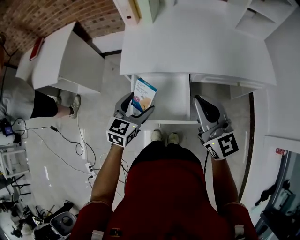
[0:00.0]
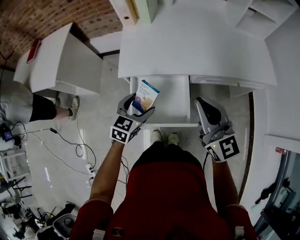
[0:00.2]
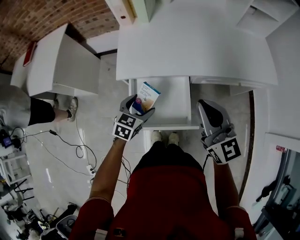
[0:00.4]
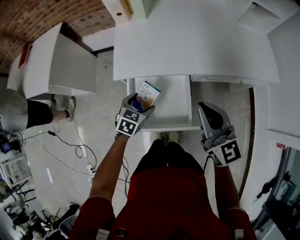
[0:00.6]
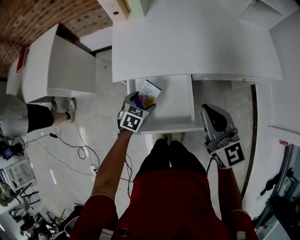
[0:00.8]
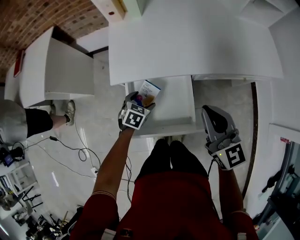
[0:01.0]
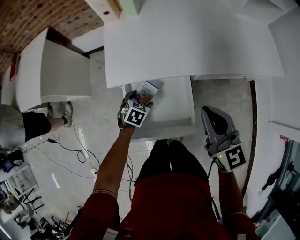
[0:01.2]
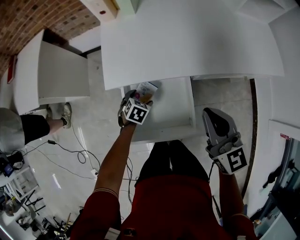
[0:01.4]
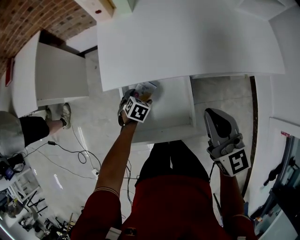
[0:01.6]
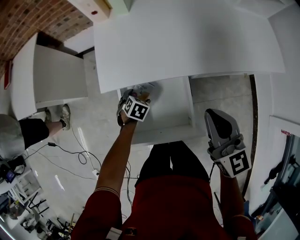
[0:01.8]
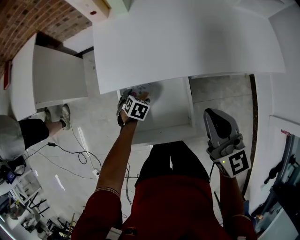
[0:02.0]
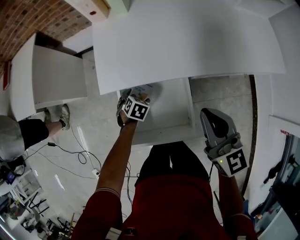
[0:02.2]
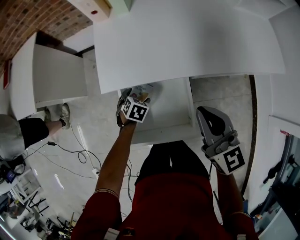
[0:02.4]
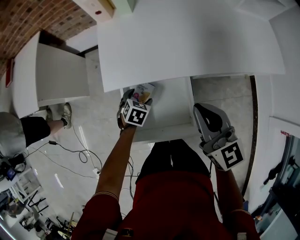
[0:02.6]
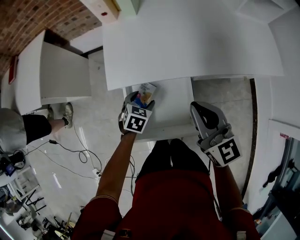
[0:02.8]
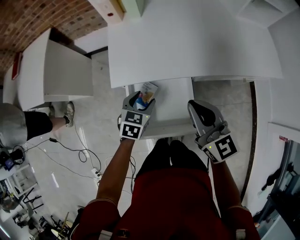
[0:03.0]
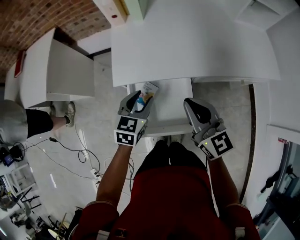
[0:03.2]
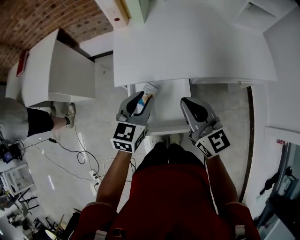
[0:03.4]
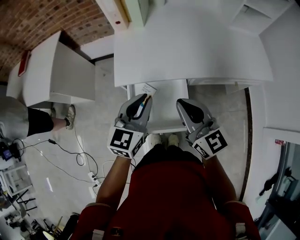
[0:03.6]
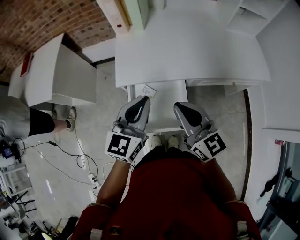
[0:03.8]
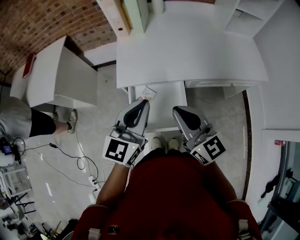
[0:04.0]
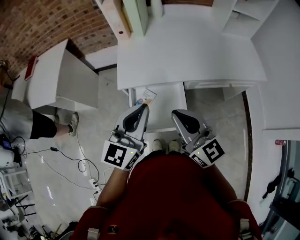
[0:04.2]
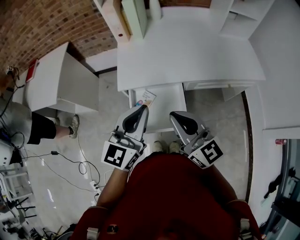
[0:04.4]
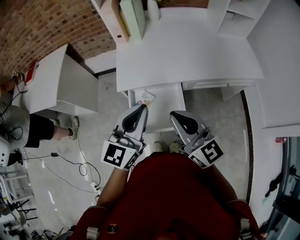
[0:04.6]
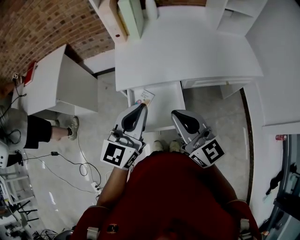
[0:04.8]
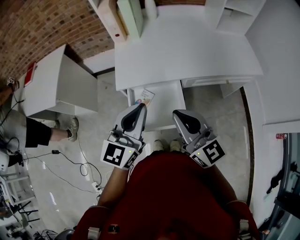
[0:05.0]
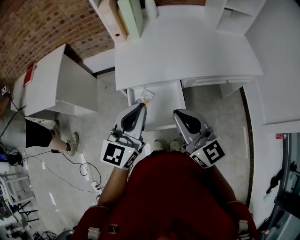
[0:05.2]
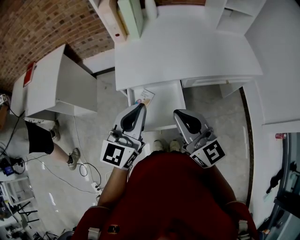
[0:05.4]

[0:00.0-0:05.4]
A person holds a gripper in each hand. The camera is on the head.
0:00.0 to 0:01.4: The right gripper goes about 10 cm downward and forward, while the left gripper moves downward and forward, approximately 30 cm, and angles its fingers downward, by about 40 degrees.
0:01.4 to 0:02.8: The left gripper goes about 5 cm upward.
0:02.8 to 0:04.0: The left gripper heads upward, covering about 35 cm, tilts its fingers some 50 degrees upward, and closes up. Meanwhile the right gripper shifts about 10 cm backward and upward.
0:04.0 to 0:05.4: The grippers make only small movements.

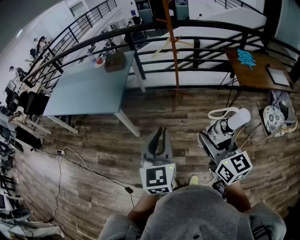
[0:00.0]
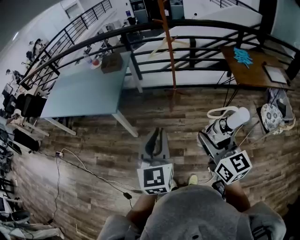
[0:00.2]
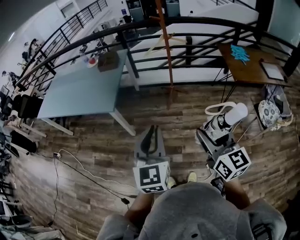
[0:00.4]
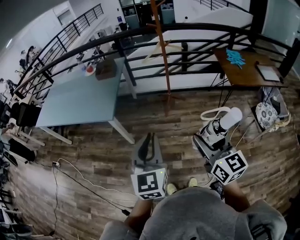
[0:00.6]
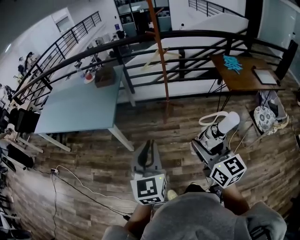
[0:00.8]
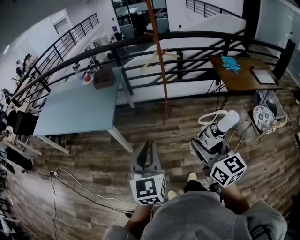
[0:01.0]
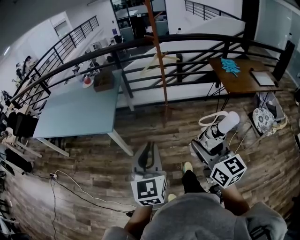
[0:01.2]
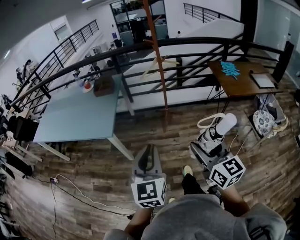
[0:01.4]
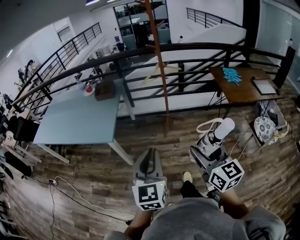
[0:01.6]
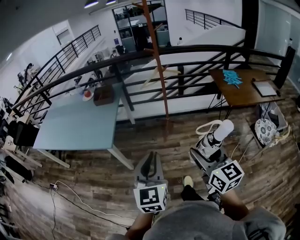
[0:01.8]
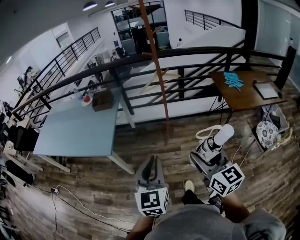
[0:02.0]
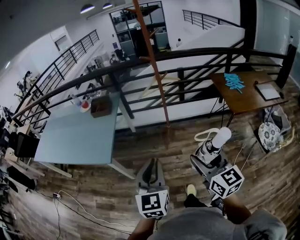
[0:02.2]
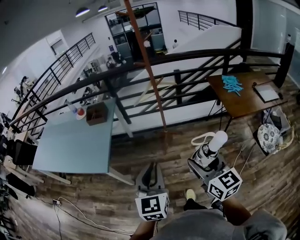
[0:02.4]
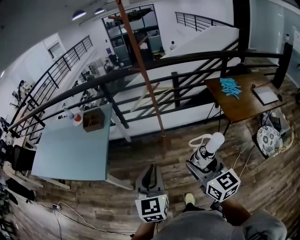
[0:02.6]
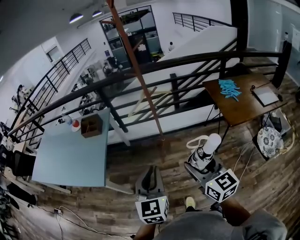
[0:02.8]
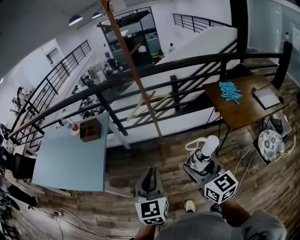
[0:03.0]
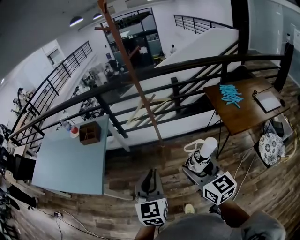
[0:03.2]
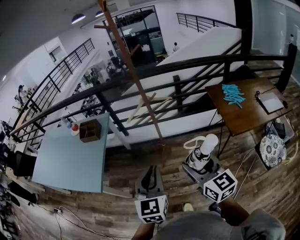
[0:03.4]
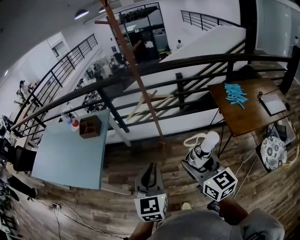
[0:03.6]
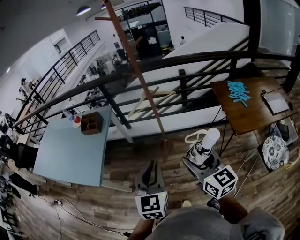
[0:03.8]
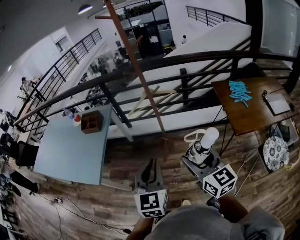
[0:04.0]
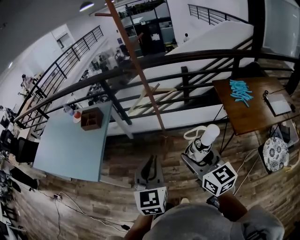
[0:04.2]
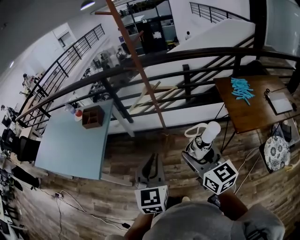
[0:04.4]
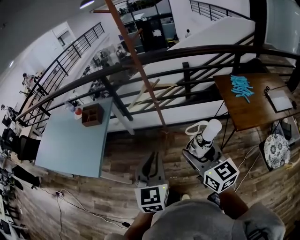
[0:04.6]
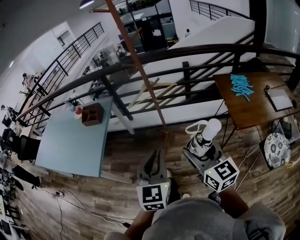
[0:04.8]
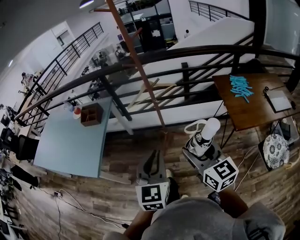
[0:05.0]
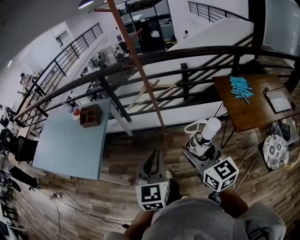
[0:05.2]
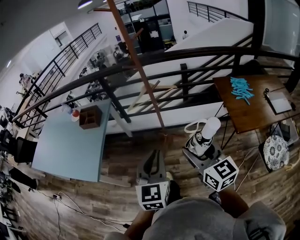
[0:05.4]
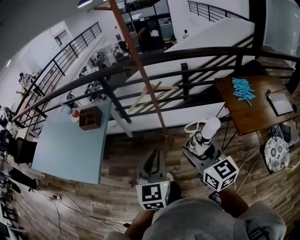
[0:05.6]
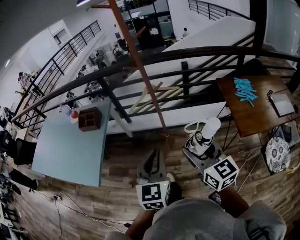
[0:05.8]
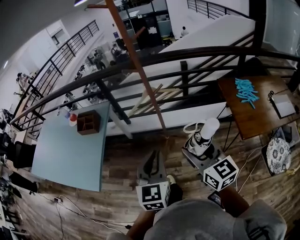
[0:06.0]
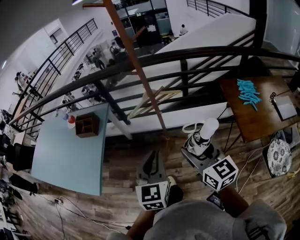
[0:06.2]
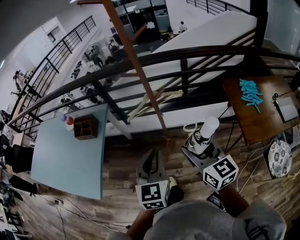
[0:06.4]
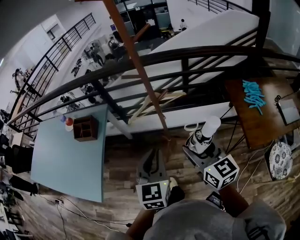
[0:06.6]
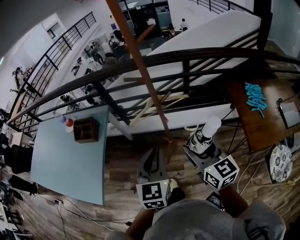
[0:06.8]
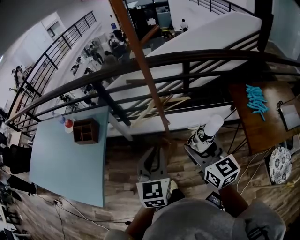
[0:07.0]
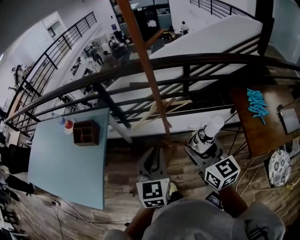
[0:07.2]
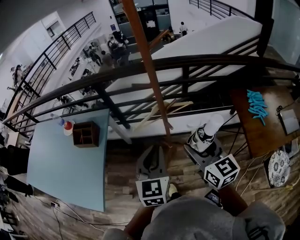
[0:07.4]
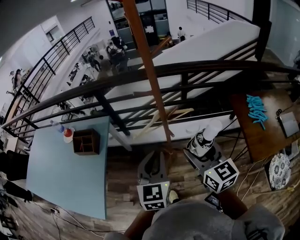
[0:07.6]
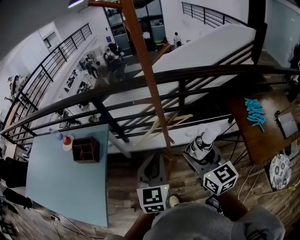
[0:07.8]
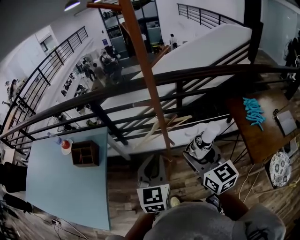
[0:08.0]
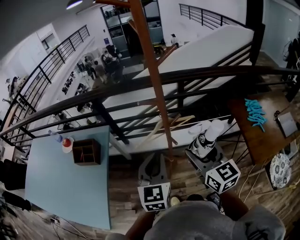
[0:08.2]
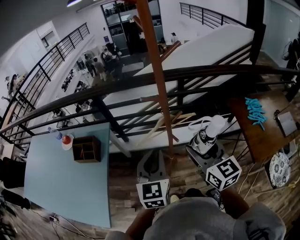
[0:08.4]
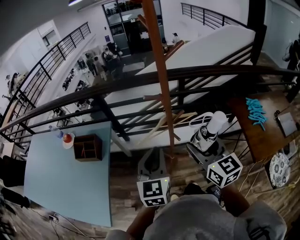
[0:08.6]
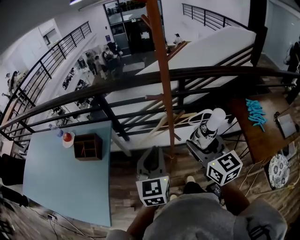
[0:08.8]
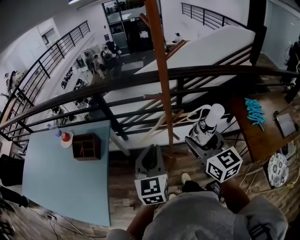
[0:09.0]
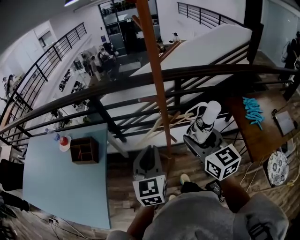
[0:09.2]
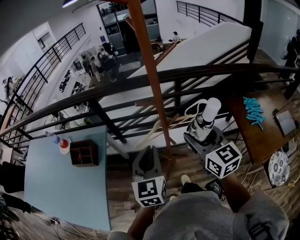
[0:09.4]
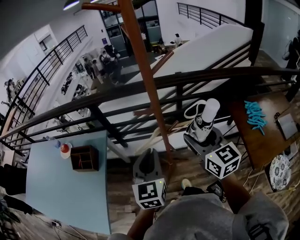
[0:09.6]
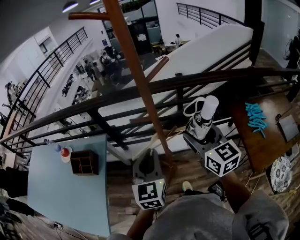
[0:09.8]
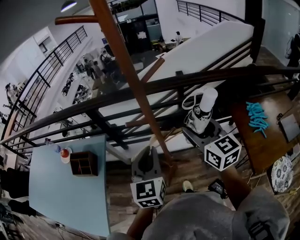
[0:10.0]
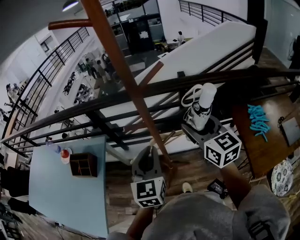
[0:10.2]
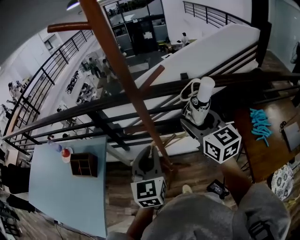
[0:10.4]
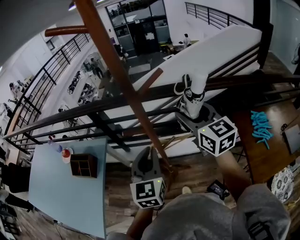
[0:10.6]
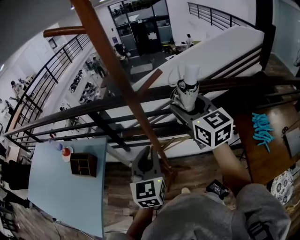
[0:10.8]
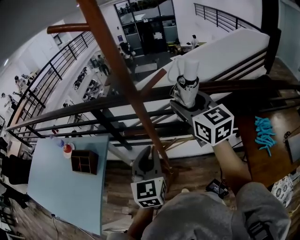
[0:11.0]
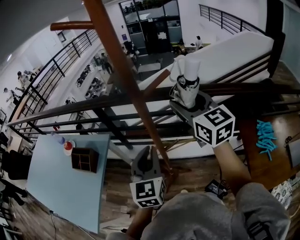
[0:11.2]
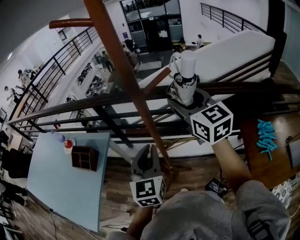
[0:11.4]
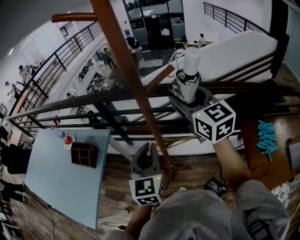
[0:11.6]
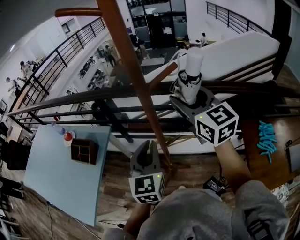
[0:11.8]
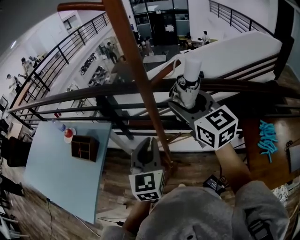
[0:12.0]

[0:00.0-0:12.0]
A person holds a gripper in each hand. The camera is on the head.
0:00.0 to 0:01.6: The right gripper moves forward, roughly 5 cm. The left gripper heads to the left, covering roughly 5 cm.
0:01.6 to 0:03.0: Both grippers travel together forward and to the right, some 30 cm.
0:03.0 to 0:04.4: The right gripper shifts approximately 10 cm forward and to the right. The left gripper is displaced to the right by about 5 cm.
0:04.4 to 0:06.0: Both grippers travel together forward, approximately 10 cm.
0:06.0 to 0:07.6: The grippers both shift forward by some 20 cm.
0:07.6 to 0:09.0: The right gripper shifts by roughly 5 cm; the left gripper heads to the left, covering some 5 cm.
0:09.0 to 0:10.4: Both grippers move forward and to the right, approximately 20 cm.
0:10.4 to 0:12.0: The right gripper moves forward, about 5 cm.

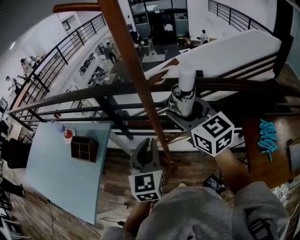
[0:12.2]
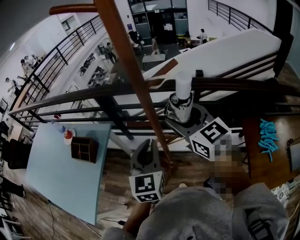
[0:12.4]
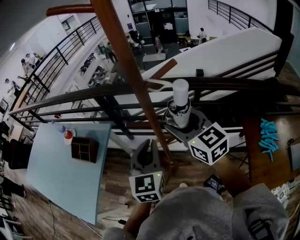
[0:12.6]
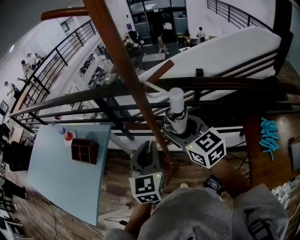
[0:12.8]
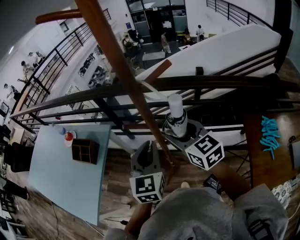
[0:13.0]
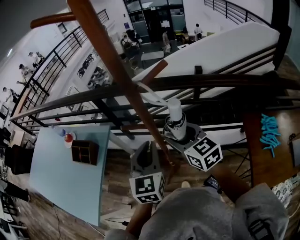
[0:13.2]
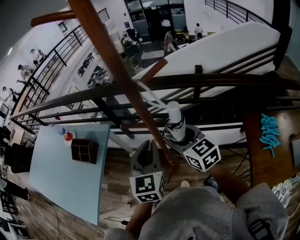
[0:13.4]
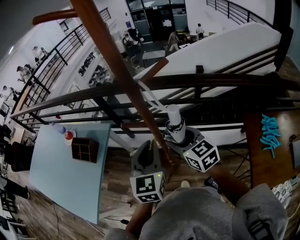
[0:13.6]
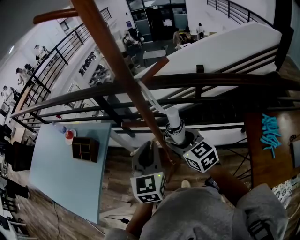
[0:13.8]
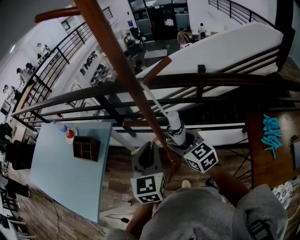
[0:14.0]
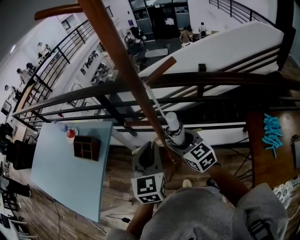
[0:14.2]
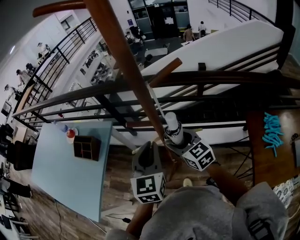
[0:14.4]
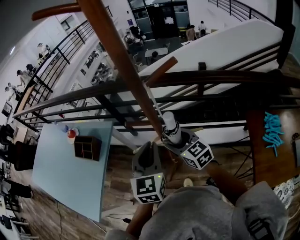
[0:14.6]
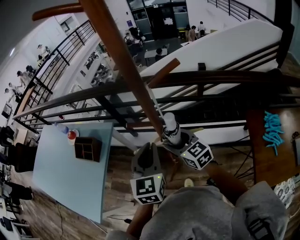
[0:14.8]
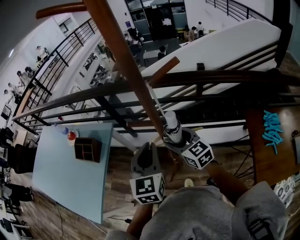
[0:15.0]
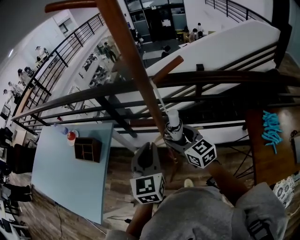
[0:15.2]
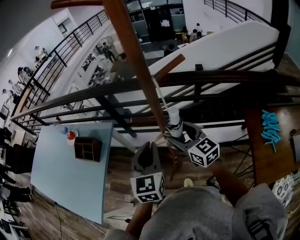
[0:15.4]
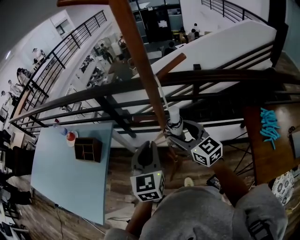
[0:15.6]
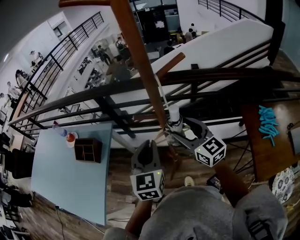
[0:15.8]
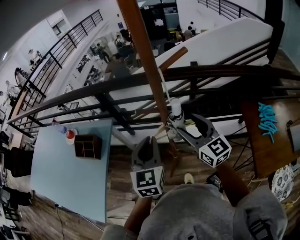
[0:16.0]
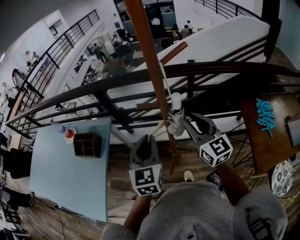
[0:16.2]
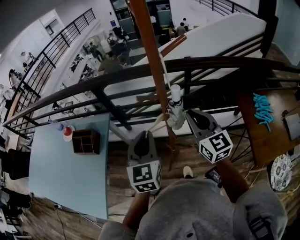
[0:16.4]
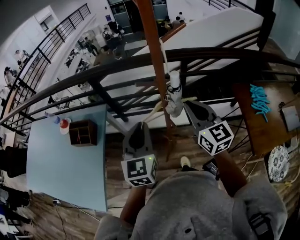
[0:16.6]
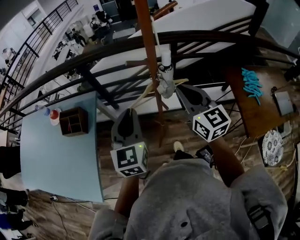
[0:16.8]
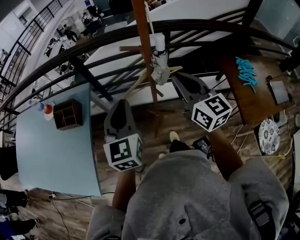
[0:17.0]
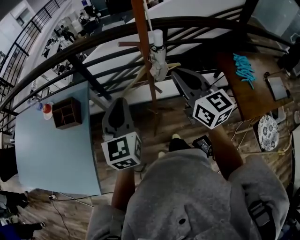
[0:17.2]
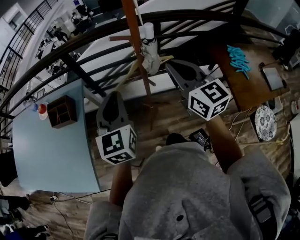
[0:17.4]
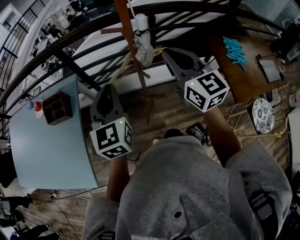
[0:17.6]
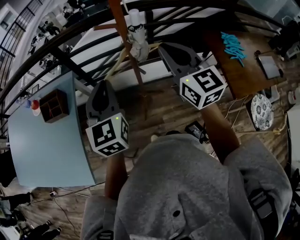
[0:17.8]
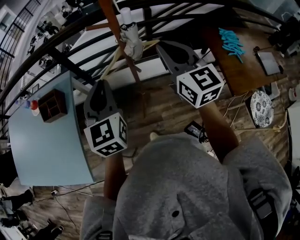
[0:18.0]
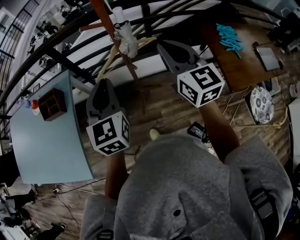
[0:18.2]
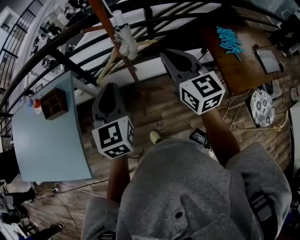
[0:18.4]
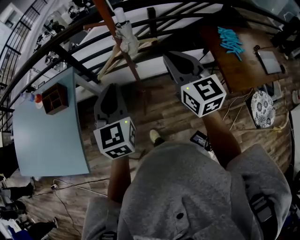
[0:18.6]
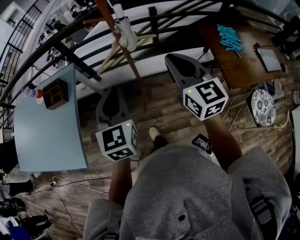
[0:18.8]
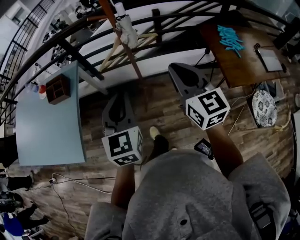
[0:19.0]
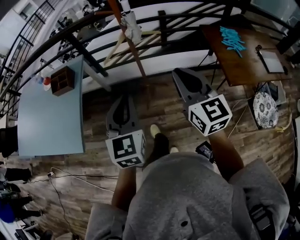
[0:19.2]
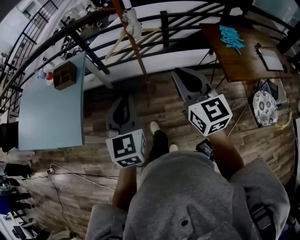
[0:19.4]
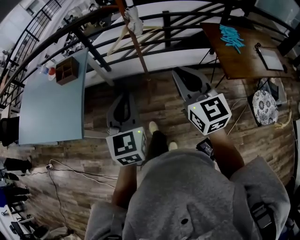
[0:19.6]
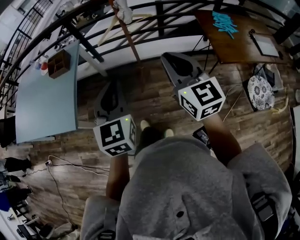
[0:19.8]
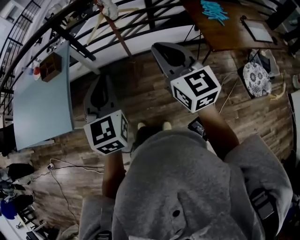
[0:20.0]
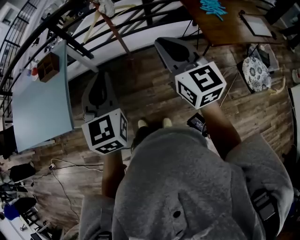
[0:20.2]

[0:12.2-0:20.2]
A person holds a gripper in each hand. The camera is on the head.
0:12.2 to 0:13.8: The right gripper heads downward, covering roughly 15 cm.
0:13.8 to 0:15.4: The grippers make only small movements.
0:15.4 to 0:17.0: The right gripper goes some 15 cm backward and upward, turns by roughly 20 degrees, and closes its fingers. The left gripper heads to the left and backward, covering about 15 cm.
0:17.0 to 0:18.6: The grippers both shift backward and to the right by roughly 15 cm.
0:18.6 to 0:20.2: Both grippers move backward, about 30 cm.
